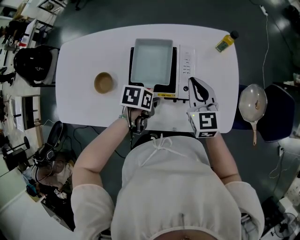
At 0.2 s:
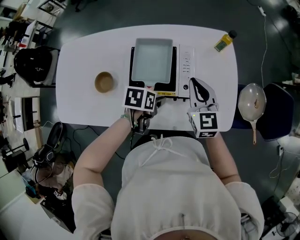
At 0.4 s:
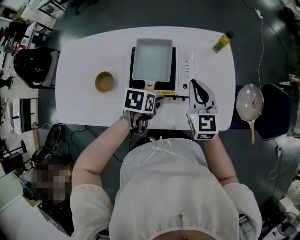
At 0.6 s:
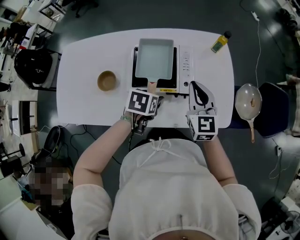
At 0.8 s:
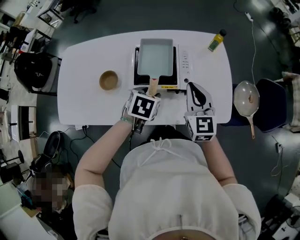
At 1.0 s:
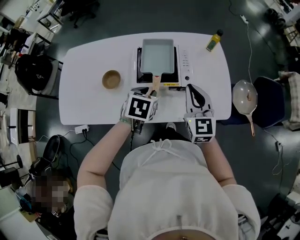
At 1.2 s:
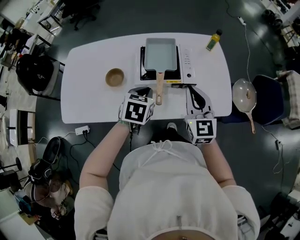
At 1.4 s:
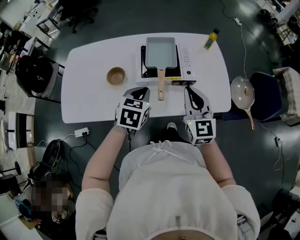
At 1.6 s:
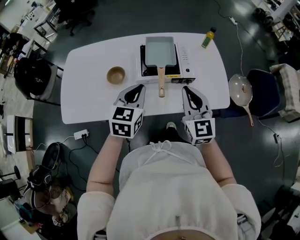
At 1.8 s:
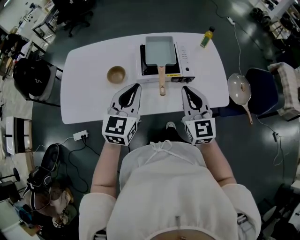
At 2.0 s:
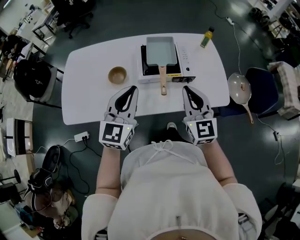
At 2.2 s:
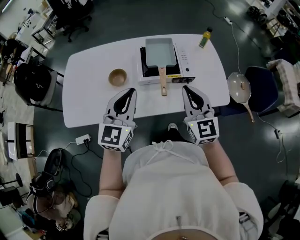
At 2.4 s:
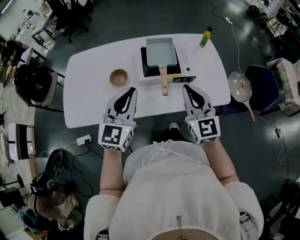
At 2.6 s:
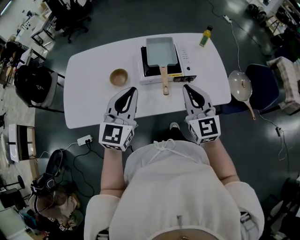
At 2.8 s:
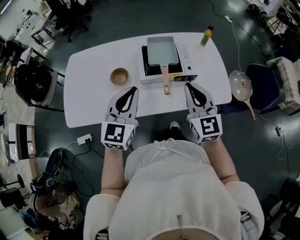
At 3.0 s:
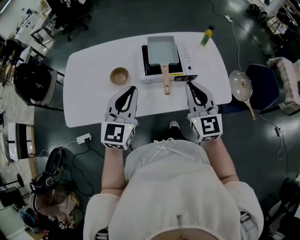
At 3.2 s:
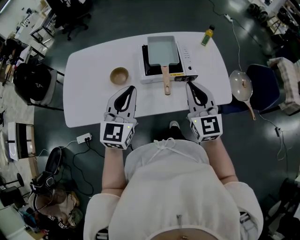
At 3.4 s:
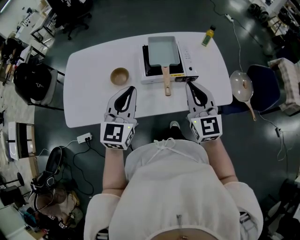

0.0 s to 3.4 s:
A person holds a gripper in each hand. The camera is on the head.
0.0 to 1.6 s: The right gripper goes roughly 25 cm backward and upward. Meanwhile the left gripper travels upward, backward and to the left by approximately 25 cm, points its fingers approximately 40 degrees further upward, and closes its fingers.
1.6 to 3.4 s: The left gripper heads upward and to the left, covering some 10 cm, and rotates roughly 20 degrees.

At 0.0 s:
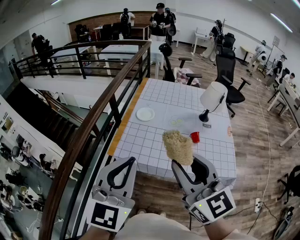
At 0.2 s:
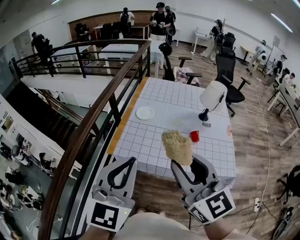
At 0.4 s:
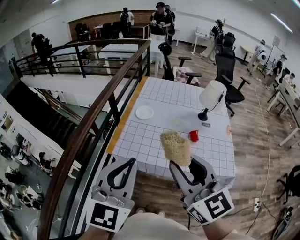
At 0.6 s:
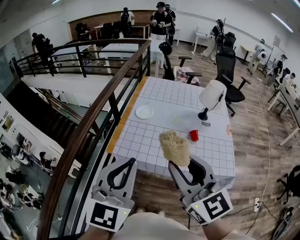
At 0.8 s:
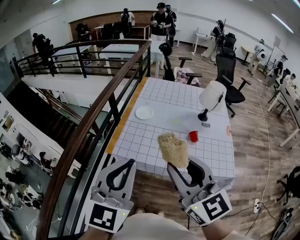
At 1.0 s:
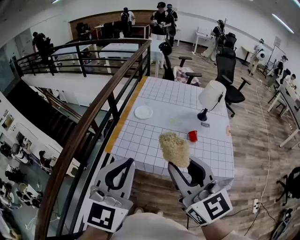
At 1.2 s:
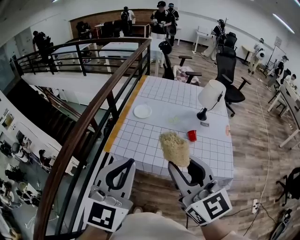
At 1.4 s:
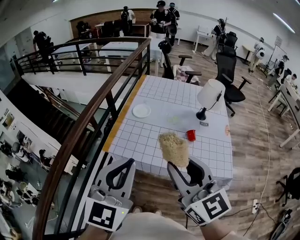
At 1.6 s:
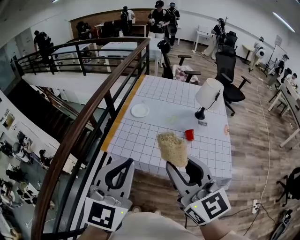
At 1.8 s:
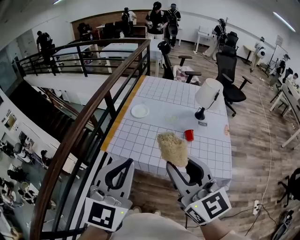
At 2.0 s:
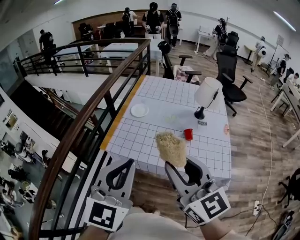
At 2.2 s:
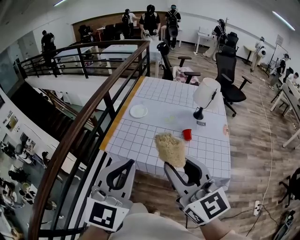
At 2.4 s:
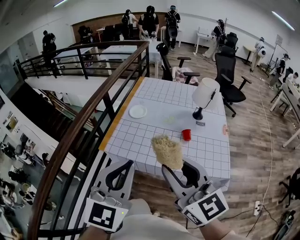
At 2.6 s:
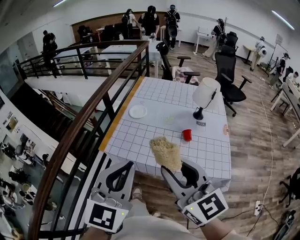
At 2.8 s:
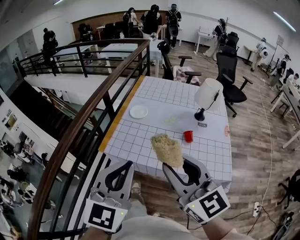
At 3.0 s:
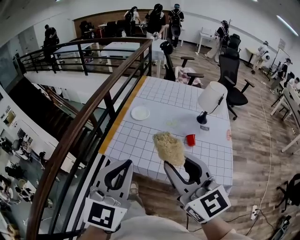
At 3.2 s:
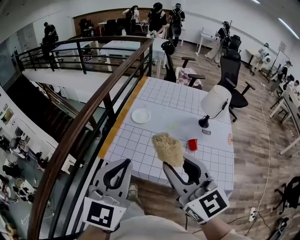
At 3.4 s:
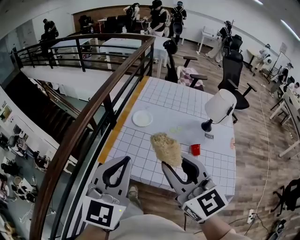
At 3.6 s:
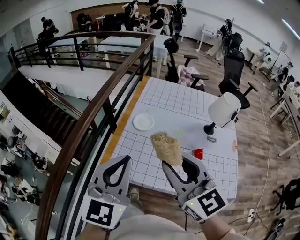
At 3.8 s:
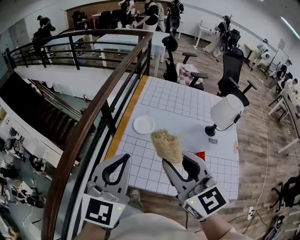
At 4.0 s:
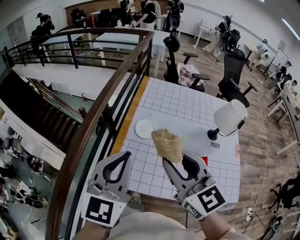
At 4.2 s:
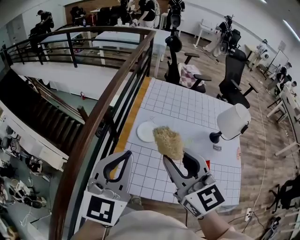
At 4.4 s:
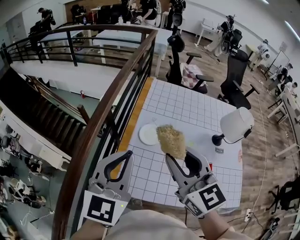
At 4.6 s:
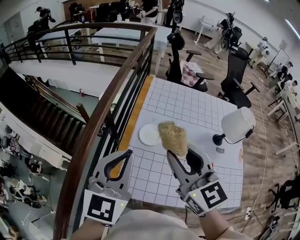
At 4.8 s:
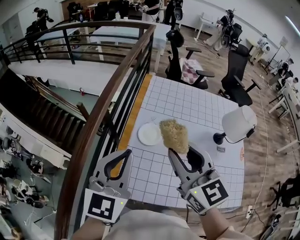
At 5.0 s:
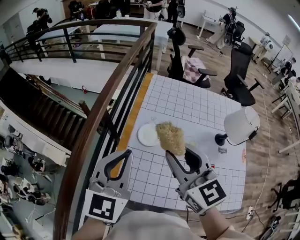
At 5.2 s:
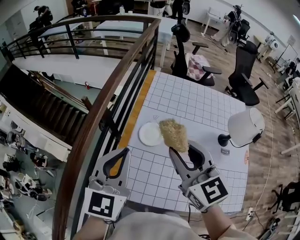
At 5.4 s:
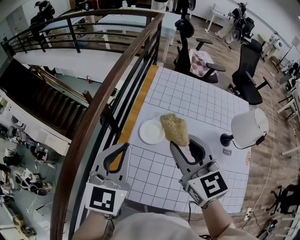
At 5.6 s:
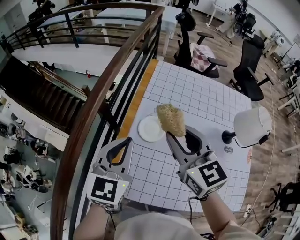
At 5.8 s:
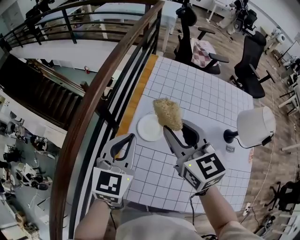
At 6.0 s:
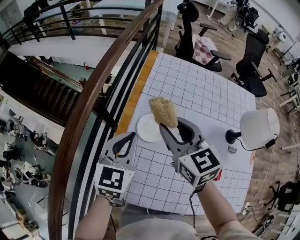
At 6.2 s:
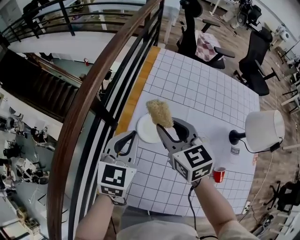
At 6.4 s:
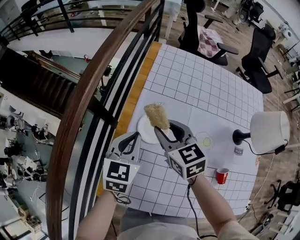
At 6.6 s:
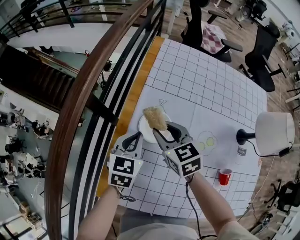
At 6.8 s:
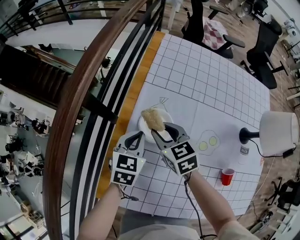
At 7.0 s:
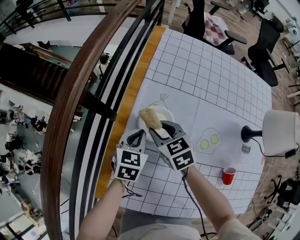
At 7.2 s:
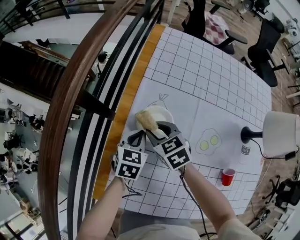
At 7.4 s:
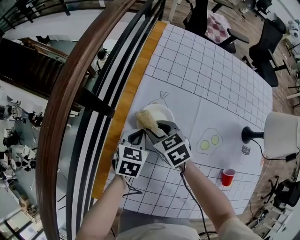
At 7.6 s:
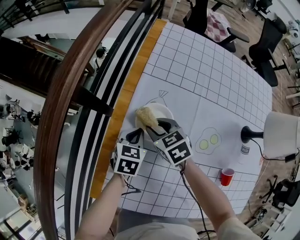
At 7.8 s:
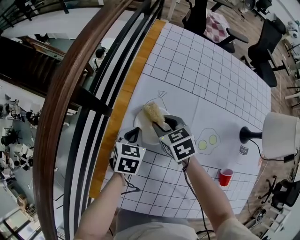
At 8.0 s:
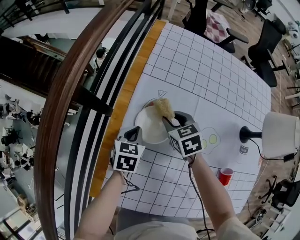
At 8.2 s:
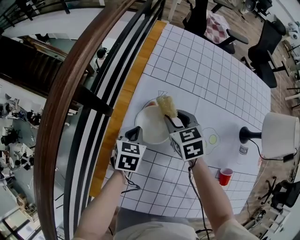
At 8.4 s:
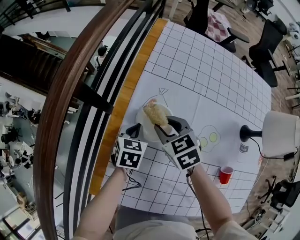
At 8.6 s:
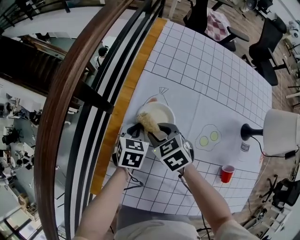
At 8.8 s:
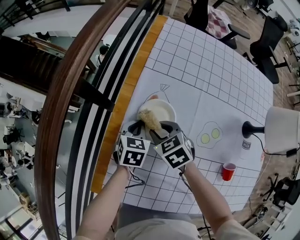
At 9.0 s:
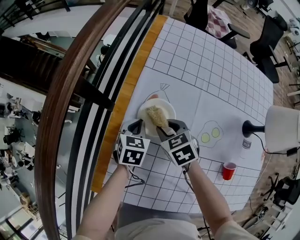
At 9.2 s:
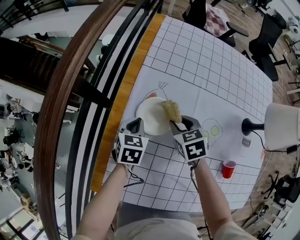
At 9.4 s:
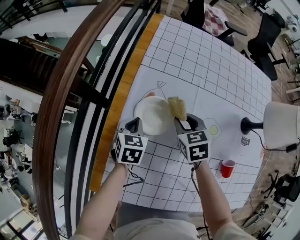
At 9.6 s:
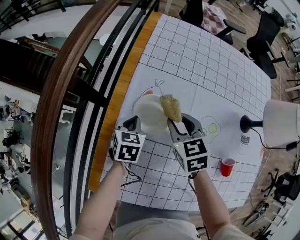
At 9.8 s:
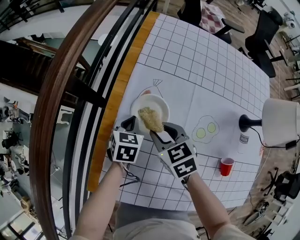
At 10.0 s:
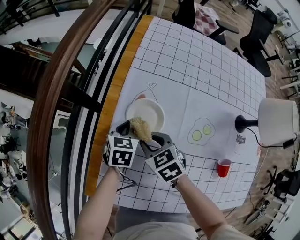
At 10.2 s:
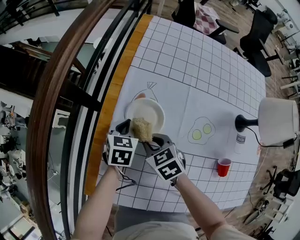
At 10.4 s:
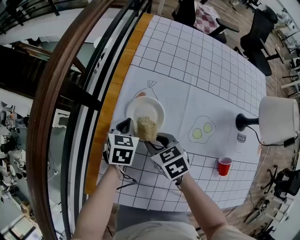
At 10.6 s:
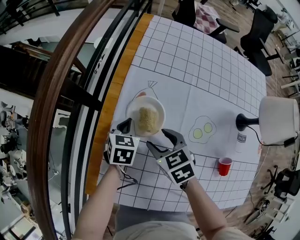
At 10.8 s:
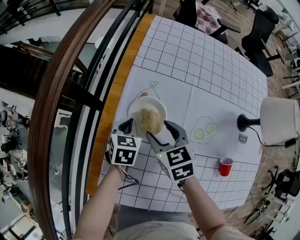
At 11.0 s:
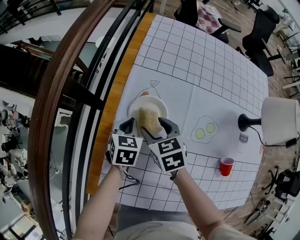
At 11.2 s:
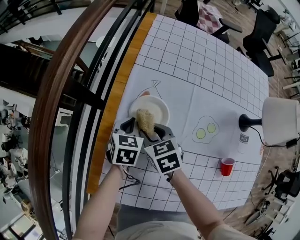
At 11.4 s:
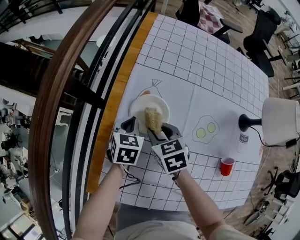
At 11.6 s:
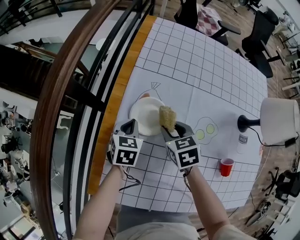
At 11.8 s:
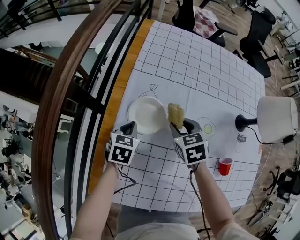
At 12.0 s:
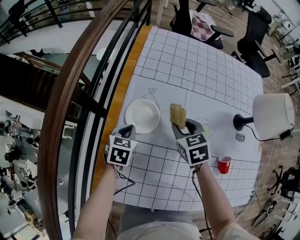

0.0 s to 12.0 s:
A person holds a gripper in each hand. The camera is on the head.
0.0 to 1.6 s: The left gripper moves to the right, approximately 5 cm.
1.6 to 3.0 s: The grippers make only small movements.
3.0 to 4.4 s: Both grippers travel together forward, some 30 cm.
4.4 to 6.0 s: The right gripper is displaced forward and downward by some 25 cm. The left gripper is displaced downward and forward by roughly 25 cm.
6.0 to 7.6 s: The two grippers go roughly 30 cm downward. The left gripper changes its angle by roughly 30 degrees, while the right gripper changes its angle by some 30 degrees.
9.0 to 10.4 s: The right gripper shifts roughly 5 cm backward, and travels to the right and back again, some 10 cm each way.
10.4 to 12.0 s: The right gripper moves to the right, upward and forward, some 15 cm, and opens, then closes once more.

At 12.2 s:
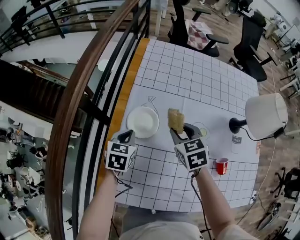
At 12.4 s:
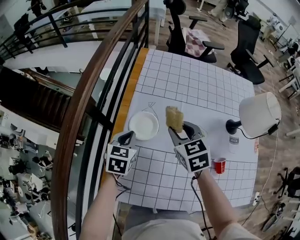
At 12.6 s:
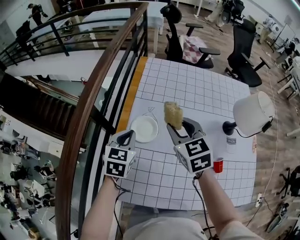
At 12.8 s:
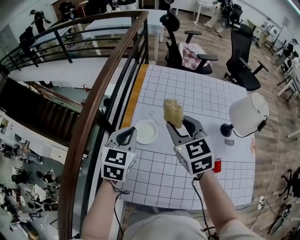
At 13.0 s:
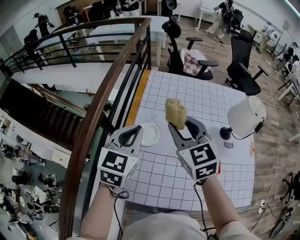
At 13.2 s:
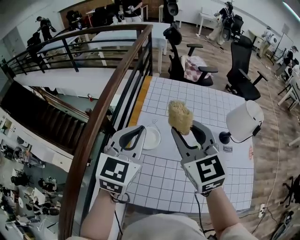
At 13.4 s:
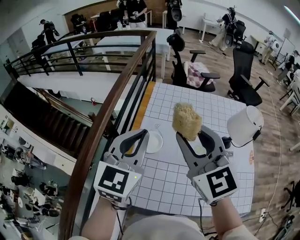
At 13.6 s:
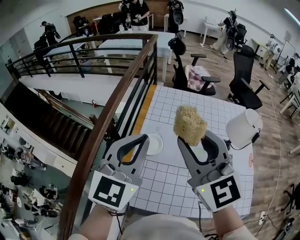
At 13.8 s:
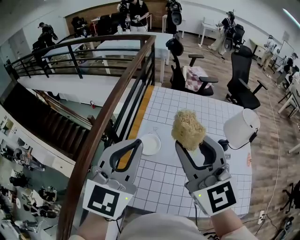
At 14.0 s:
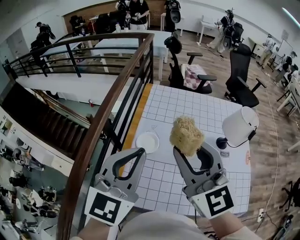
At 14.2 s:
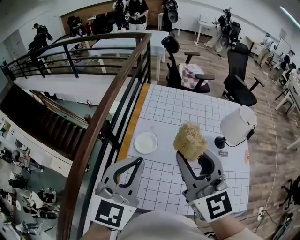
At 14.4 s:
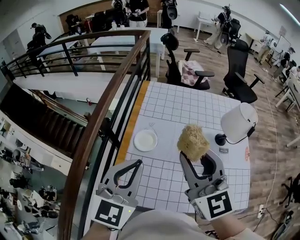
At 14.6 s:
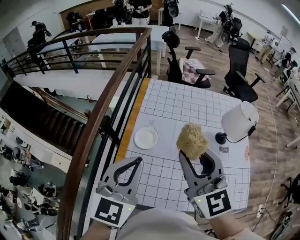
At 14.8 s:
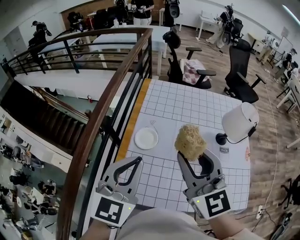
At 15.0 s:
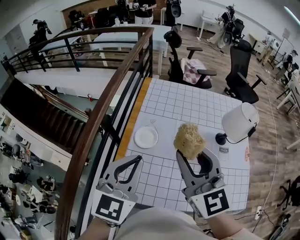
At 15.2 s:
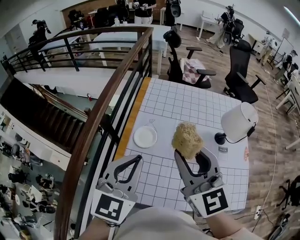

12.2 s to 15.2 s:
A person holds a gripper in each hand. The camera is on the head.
12.2 to 13.8 s: The grippers both shift upward by approximately 40 cm. The left gripper points its fingers roughly 40 degrees further upward; the right gripper points its fingers approximately 50 degrees further upward.
13.8 to 15.2 s: The right gripper shifts by roughly 5 cm. The left gripper shifts about 10 cm downward.

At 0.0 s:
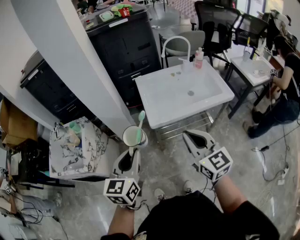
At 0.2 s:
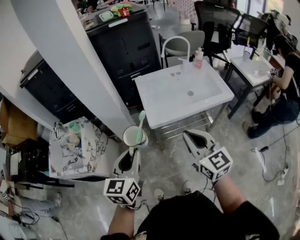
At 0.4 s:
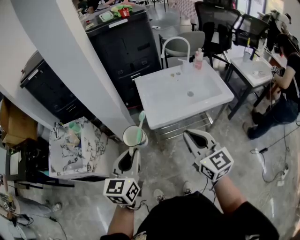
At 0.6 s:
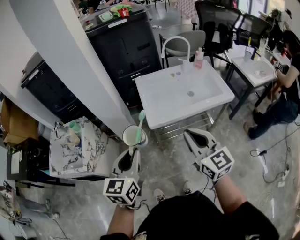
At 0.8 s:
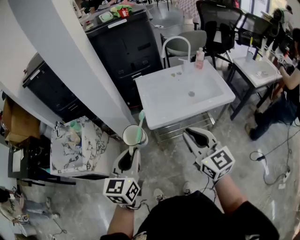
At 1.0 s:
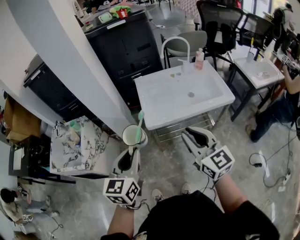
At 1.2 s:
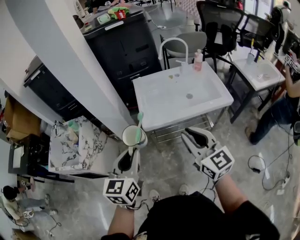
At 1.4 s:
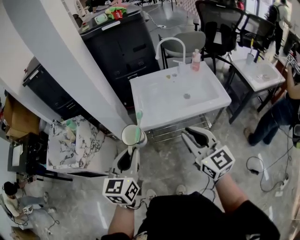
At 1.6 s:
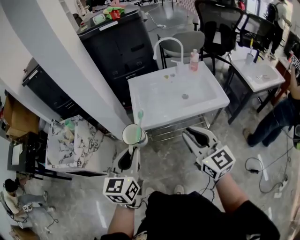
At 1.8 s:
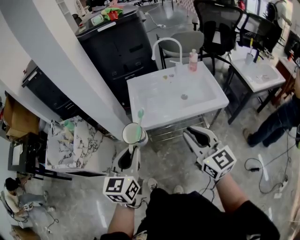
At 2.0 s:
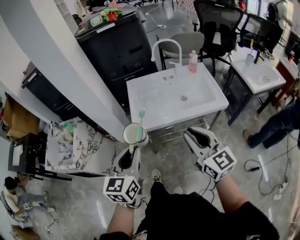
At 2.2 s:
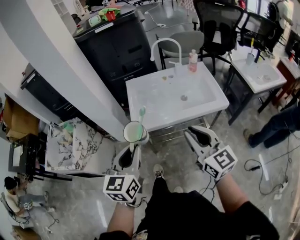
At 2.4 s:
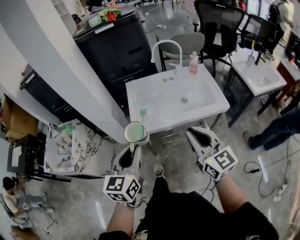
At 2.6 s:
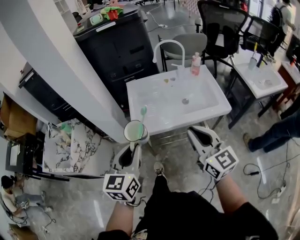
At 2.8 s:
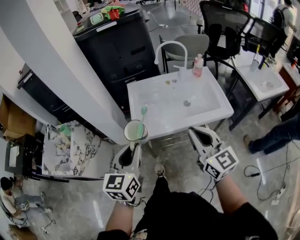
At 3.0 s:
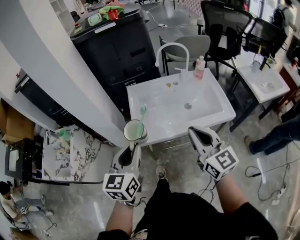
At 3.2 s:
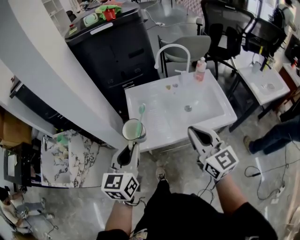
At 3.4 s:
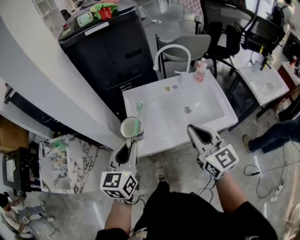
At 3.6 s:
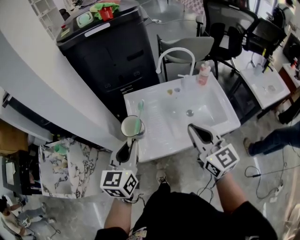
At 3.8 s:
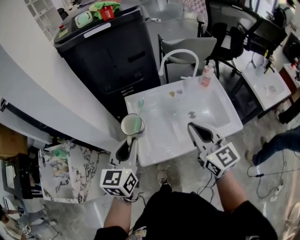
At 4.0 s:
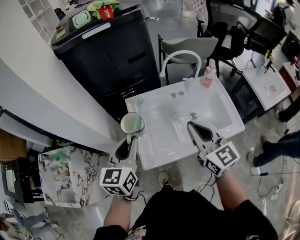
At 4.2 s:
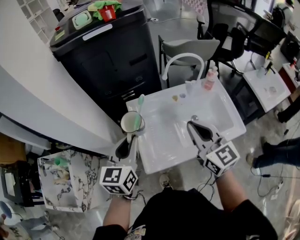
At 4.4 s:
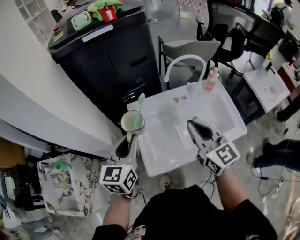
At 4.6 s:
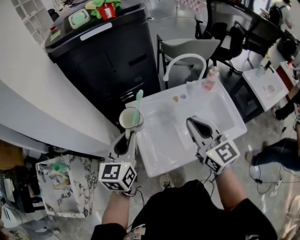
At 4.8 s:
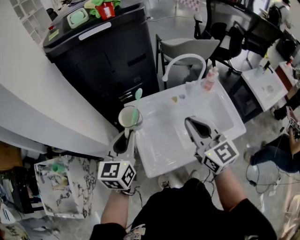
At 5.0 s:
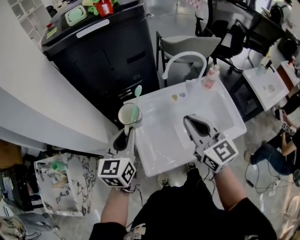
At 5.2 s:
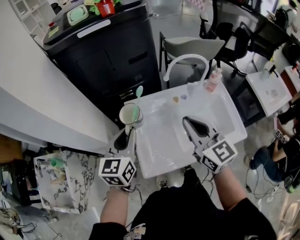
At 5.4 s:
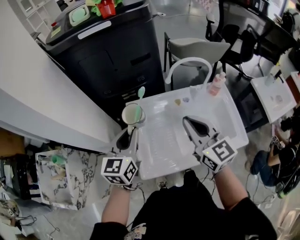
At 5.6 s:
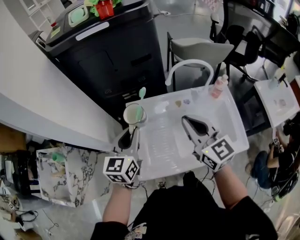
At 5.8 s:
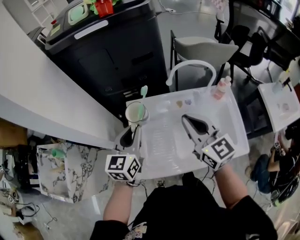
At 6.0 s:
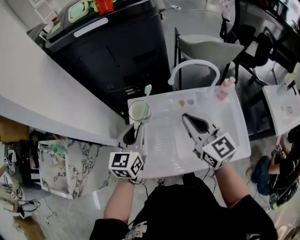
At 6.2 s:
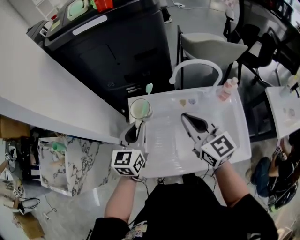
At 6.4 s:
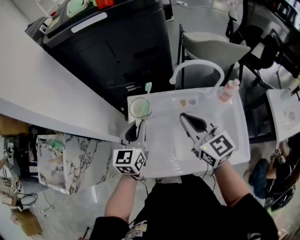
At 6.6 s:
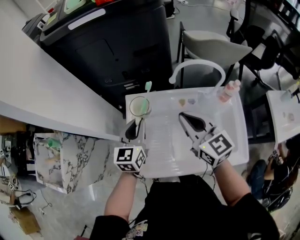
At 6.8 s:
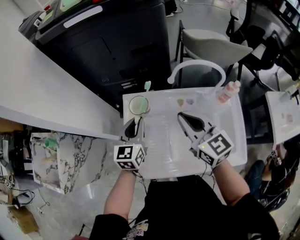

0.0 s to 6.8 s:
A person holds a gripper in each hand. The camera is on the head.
0.0 to 1.4 s: Both grippers travel together to the right, some 10 cm.
1.4 to 2.8 s: Both grippers move forward and to the right, about 10 cm.
2.8 to 4.0 s: The two grippers go some 25 cm forward.
4.0 to 5.4 s: Both grippers move forward, some 10 cm.
5.4 to 6.8 s: The left gripper travels downward, forward and to the right by roughly 15 cm; the right gripper shifts roughly 10 cm forward and downward.
